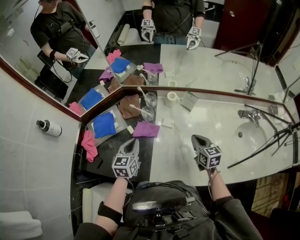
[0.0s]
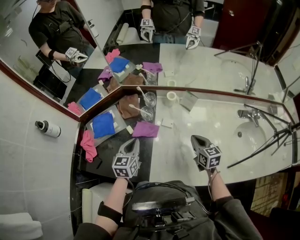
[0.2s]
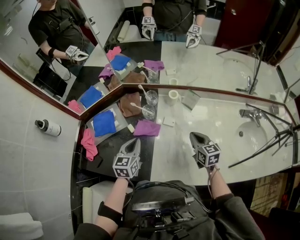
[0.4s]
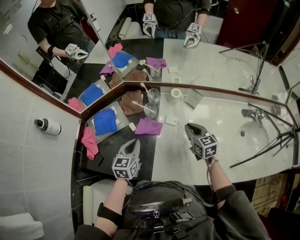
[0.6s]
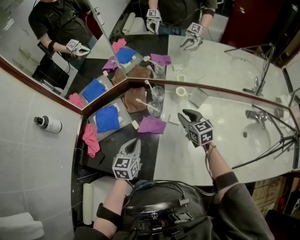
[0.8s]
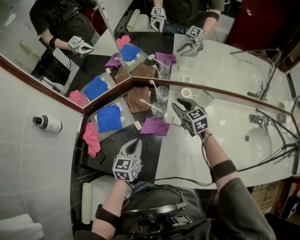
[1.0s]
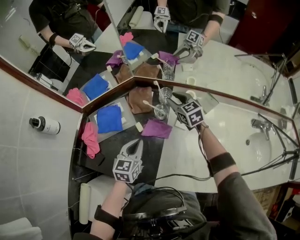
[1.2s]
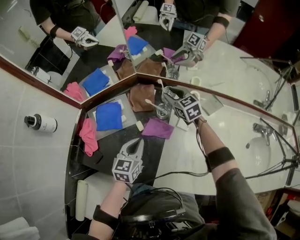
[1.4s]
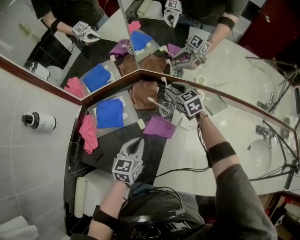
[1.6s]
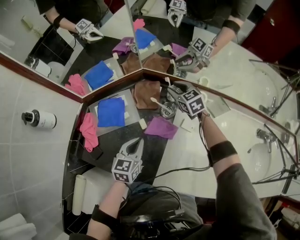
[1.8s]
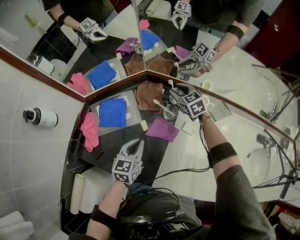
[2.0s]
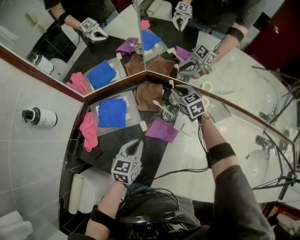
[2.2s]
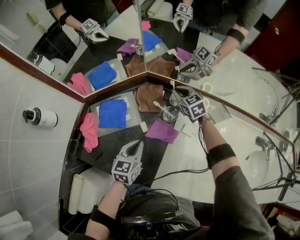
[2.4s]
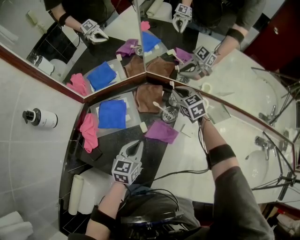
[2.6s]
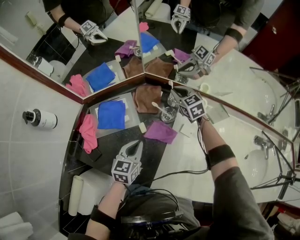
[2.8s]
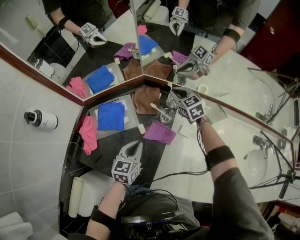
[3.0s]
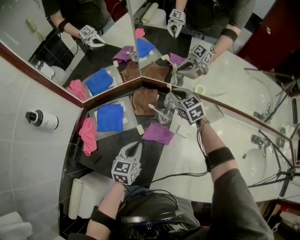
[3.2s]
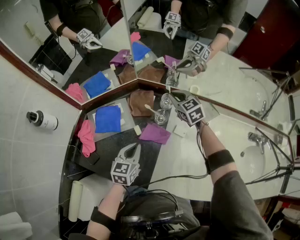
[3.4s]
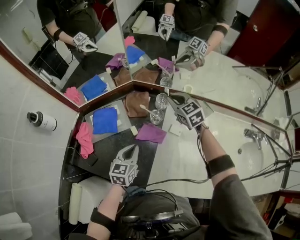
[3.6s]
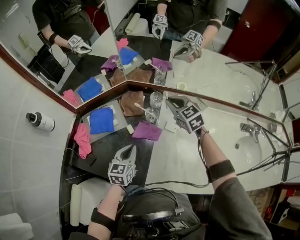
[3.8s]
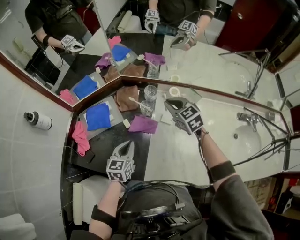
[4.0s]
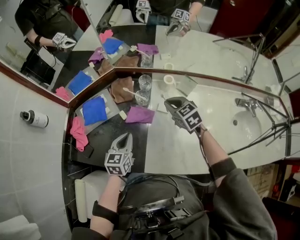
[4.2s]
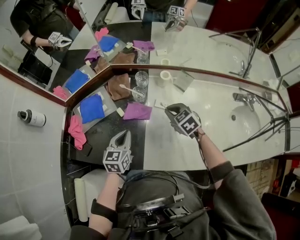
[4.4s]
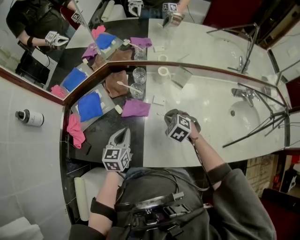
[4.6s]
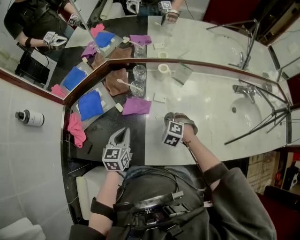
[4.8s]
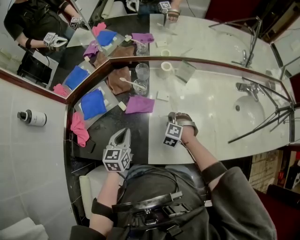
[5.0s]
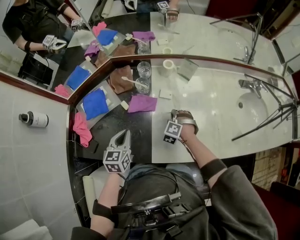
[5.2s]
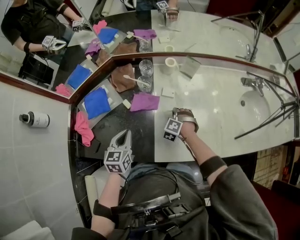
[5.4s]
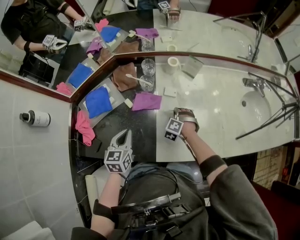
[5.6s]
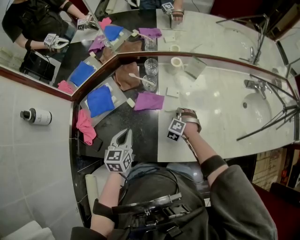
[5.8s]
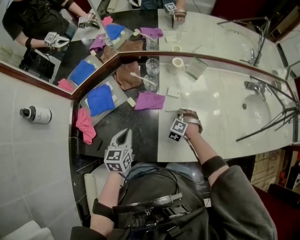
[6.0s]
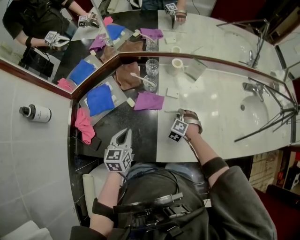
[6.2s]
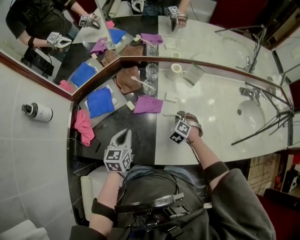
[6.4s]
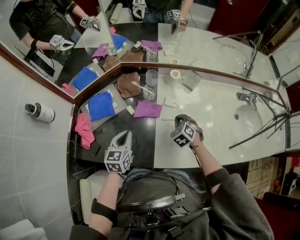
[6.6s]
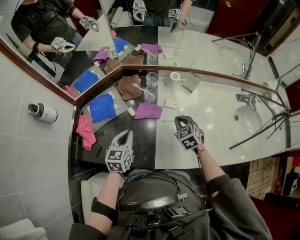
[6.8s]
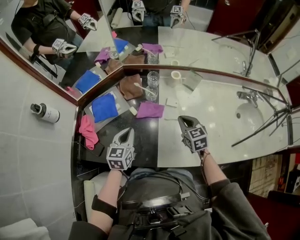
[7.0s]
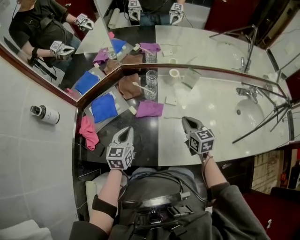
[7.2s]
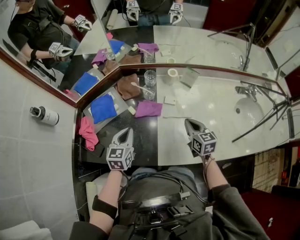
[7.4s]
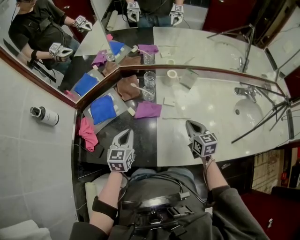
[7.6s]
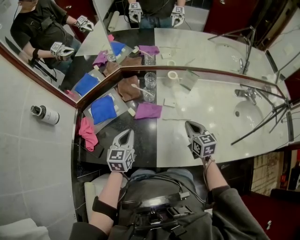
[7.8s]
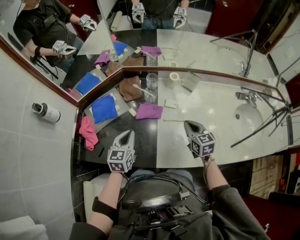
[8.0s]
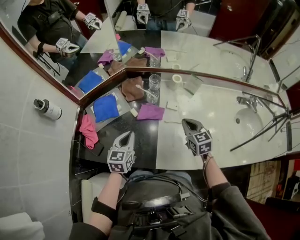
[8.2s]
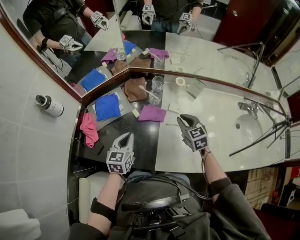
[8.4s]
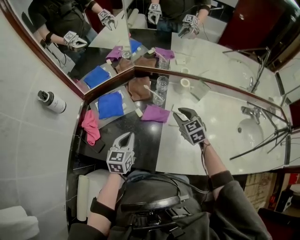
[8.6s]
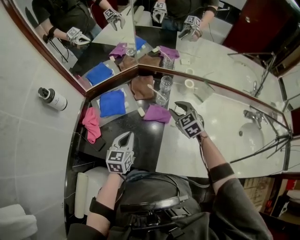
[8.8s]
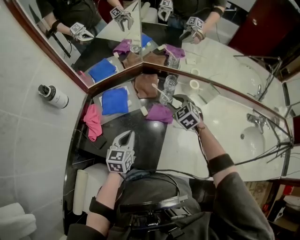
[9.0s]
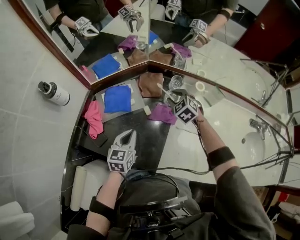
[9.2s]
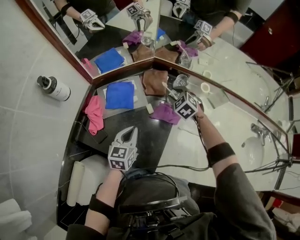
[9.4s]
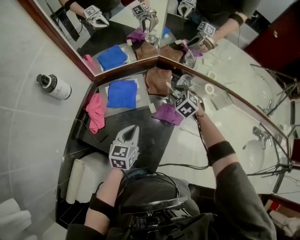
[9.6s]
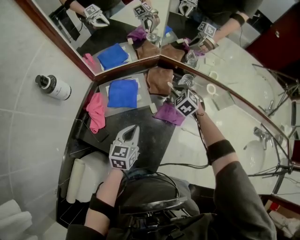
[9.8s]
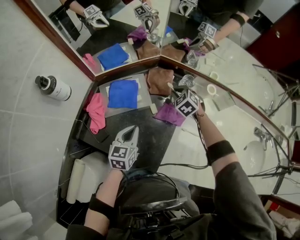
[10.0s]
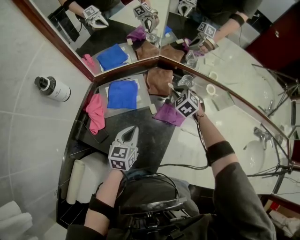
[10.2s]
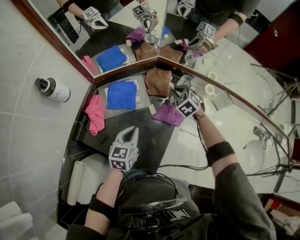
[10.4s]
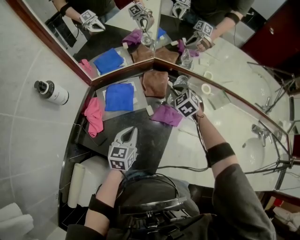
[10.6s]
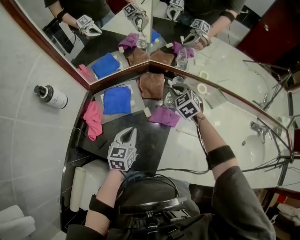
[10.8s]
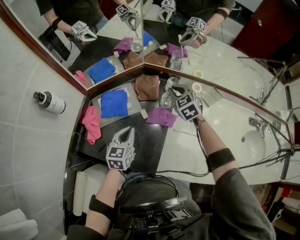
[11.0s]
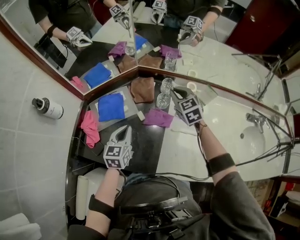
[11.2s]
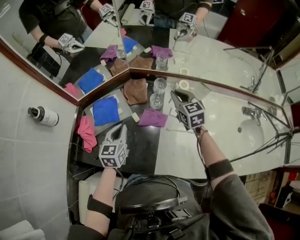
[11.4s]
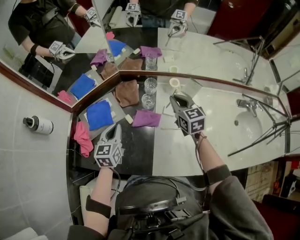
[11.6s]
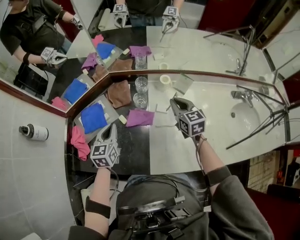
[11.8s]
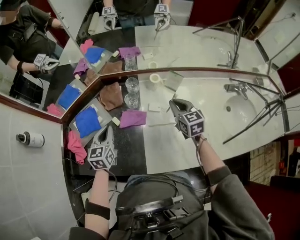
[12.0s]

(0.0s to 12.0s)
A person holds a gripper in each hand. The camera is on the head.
0.0s - 1.6s: The right gripper shifts roughly 40 cm forward and to the left, rotates roughly 30 degrees, and opens its fingers, while the left gripper changes place by some 10 cm.
1.6s - 3.0s: The right gripper closes its fingers.
3.0s - 4.4s: The right gripper travels backward by roughly 25 cm. Meanwhile the left gripper is displaced backward by roughly 10 cm.
4.4s - 6.0s: The left gripper moves some 10 cm. The right gripper moves downward, roughly 15 cm, and rotates some 50 degrees.
6.0s - 7.6s: The right gripper travels upward by about 20 cm, rotates around the line of its fingers by approximately 70 degrees, clockwise from behind, and closes its fingers.
7.6s - 9.0s: The left gripper shifts by about 5 cm. Meanwhile the right gripper goes approximately 25 cm forward and to the left, rotates around the line of its fingers by about 50 degrees, counterclockwise from behind, and opens its fingers.
9.0s - 10.4s: The right gripper goes approximately 10 cm forward and downward, and closes.
10.4s - 12.0s: The right gripper goes about 30 cm to the right, backward and upward, and twists approximately 40 degrees clockwise, seen from behind; the left gripper shifts approximately 10 cm to the right, upward and forward.

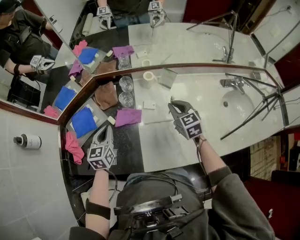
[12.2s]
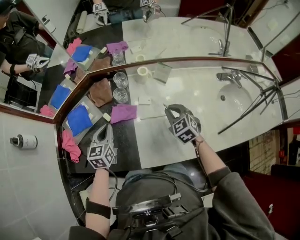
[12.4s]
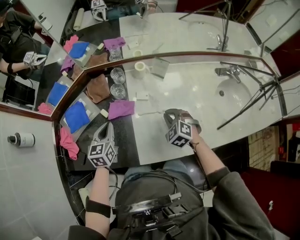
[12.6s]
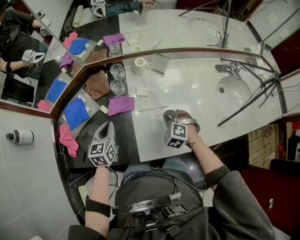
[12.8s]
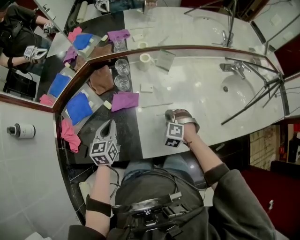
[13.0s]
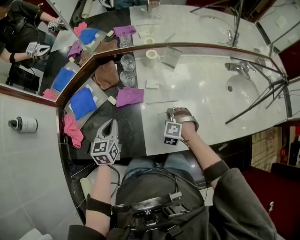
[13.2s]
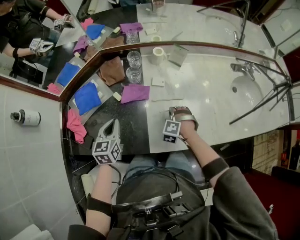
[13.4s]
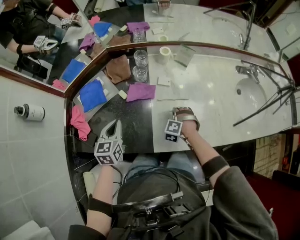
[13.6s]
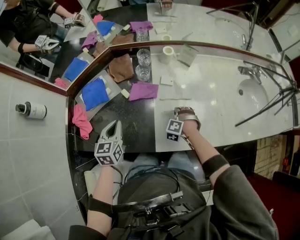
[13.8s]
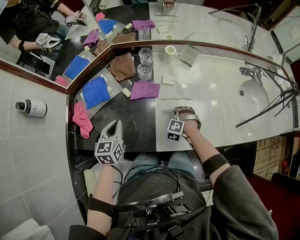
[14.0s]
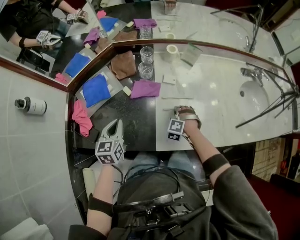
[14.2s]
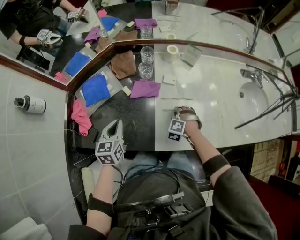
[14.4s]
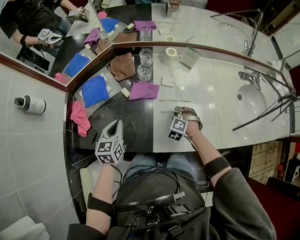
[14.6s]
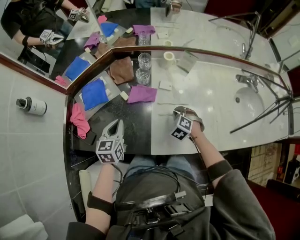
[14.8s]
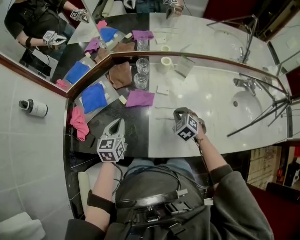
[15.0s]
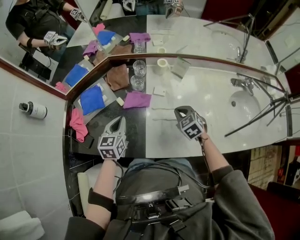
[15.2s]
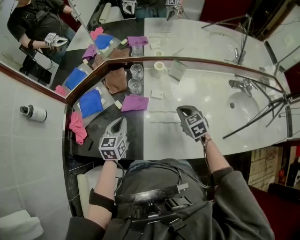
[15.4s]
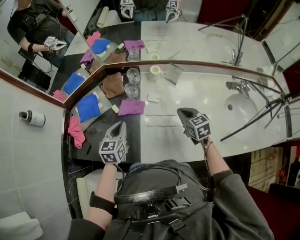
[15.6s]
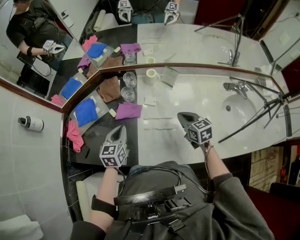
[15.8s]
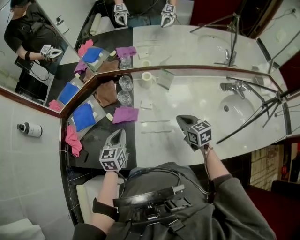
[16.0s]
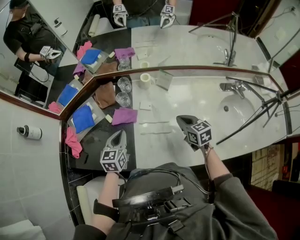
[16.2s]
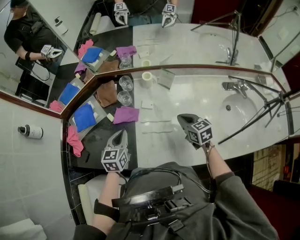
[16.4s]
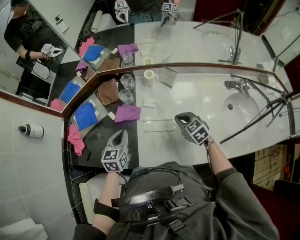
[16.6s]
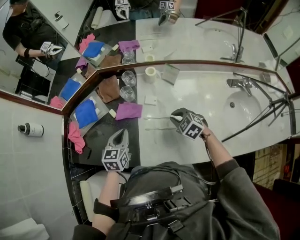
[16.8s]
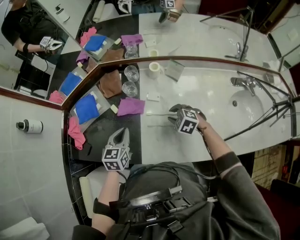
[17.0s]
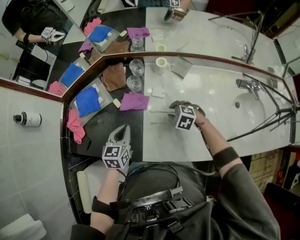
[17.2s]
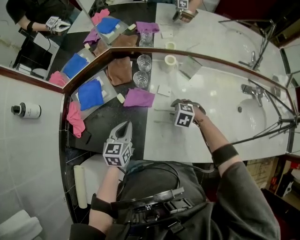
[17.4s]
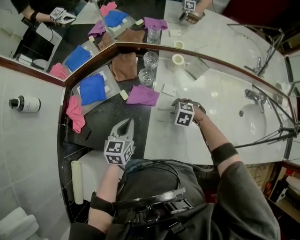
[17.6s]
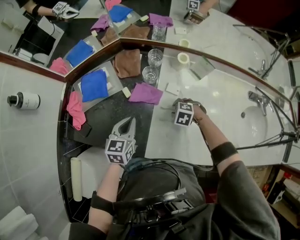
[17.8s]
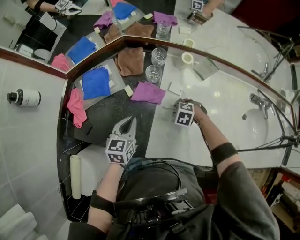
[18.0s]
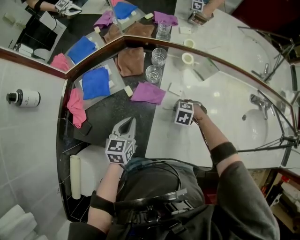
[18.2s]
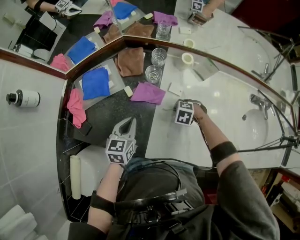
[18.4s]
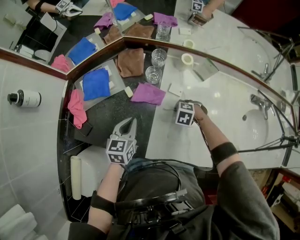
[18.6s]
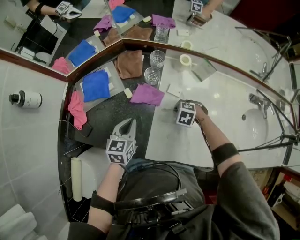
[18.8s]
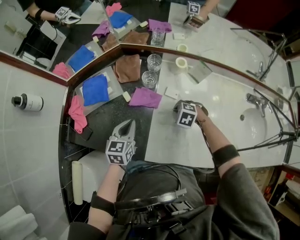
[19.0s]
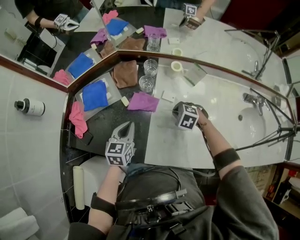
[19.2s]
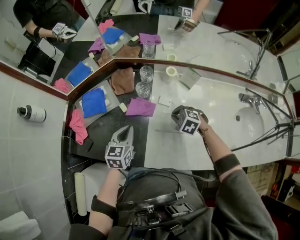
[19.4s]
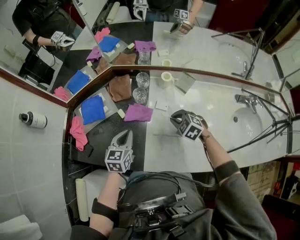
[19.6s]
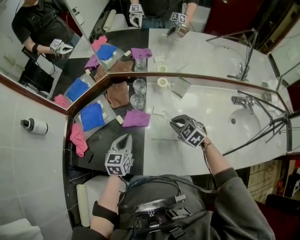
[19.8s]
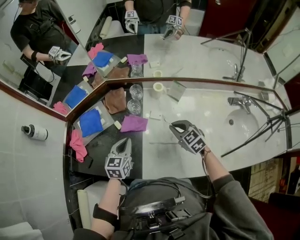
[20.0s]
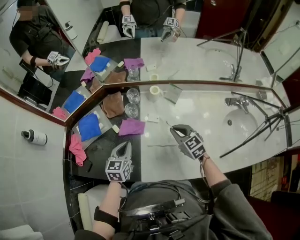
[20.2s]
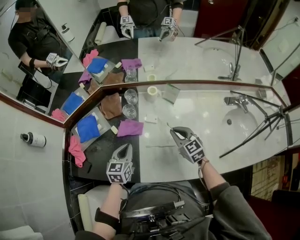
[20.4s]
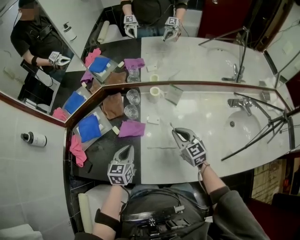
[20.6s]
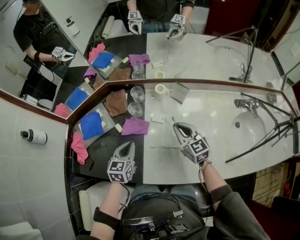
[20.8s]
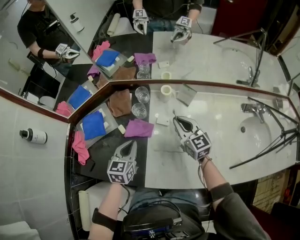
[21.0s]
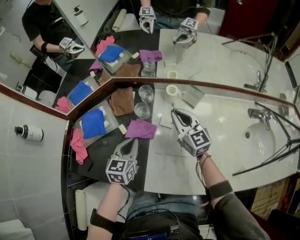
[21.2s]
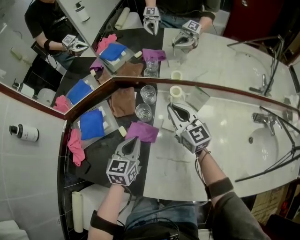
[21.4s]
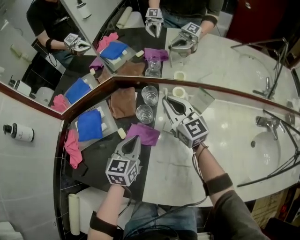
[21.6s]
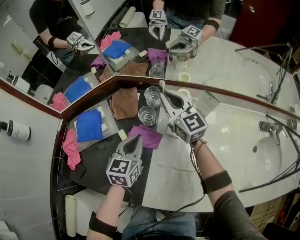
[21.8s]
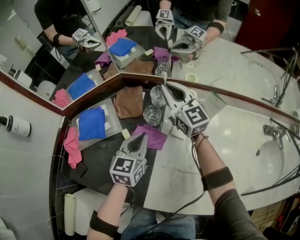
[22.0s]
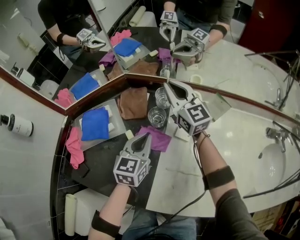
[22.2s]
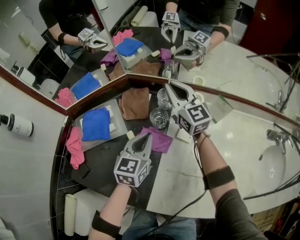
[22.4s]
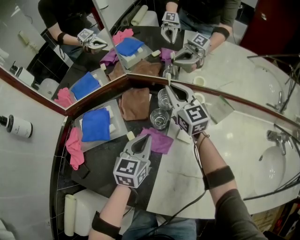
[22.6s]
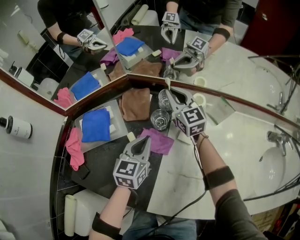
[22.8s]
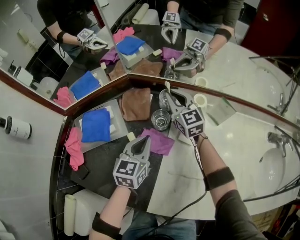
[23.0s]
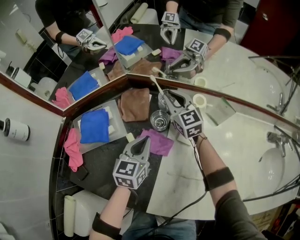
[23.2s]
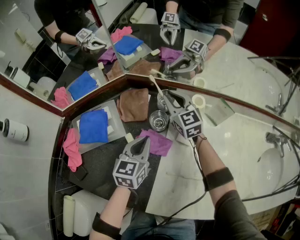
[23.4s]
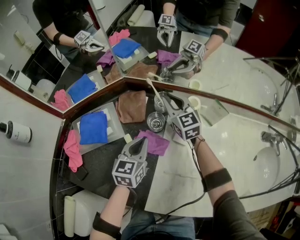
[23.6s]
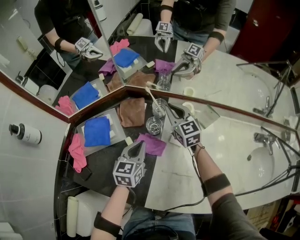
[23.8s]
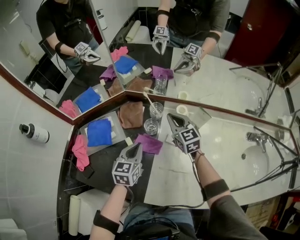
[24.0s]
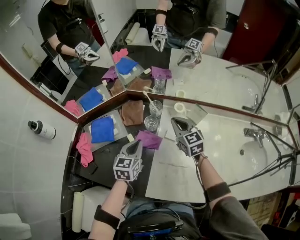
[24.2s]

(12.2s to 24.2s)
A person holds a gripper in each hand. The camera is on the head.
12.2s - 13.8s: The left gripper shifts some 10 cm backward. The right gripper goes roughly 25 cm downward and backward, and rolls counterclockwise, seen from behind, by about 60 degrees.
13.8s - 15.2s: The right gripper goes approximately 15 cm upward, and twists roughly 40 degrees clockwise, seen from behind; the left gripper shifts some 5 cm to the right.
15.2s - 16.6s: Both grippers travel together to the right, roughly 5 cm.
16.6s - 18.2s: The left gripper moves approximately 10 cm; the right gripper travels downward by about 15 cm, points its fingers some 40 degrees further downward, and opens and closes again.
18.2s - 19.8s: The left gripper shifts by about 5 cm; the right gripper travels upward by some 15 cm, and angles its fingers upward, by roughly 30 degrees.
19.8s - 21.2s: The left gripper shifts by approximately 5 cm. The right gripper shifts about 15 cm forward and upward, and angles its fingers upward, by roughly 40 degrees.
21.2s - 22.6s: The right gripper is displaced forward and to the left by some 20 cm; the left gripper shifts approximately 5 cm forward.
22.6s - 24.2s: The right gripper moves backward and to the right, some 15 cm. The left gripper heads upward, covering approximately 5 cm.
